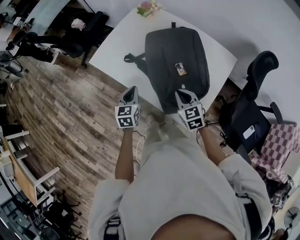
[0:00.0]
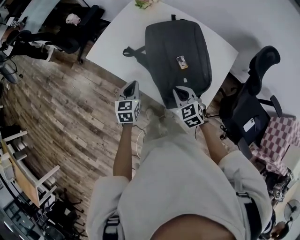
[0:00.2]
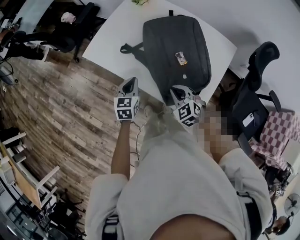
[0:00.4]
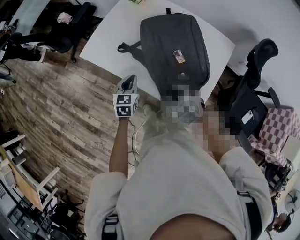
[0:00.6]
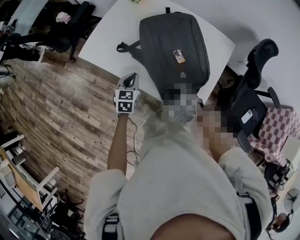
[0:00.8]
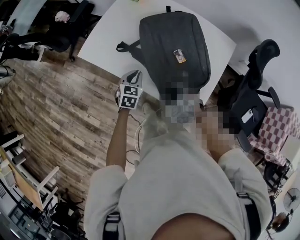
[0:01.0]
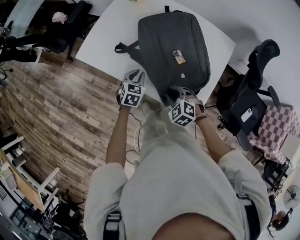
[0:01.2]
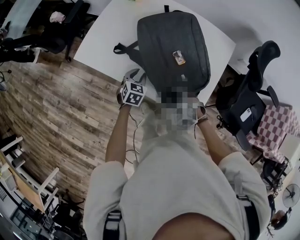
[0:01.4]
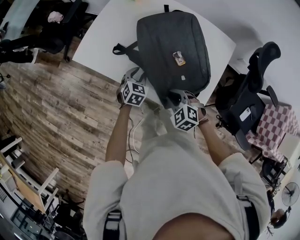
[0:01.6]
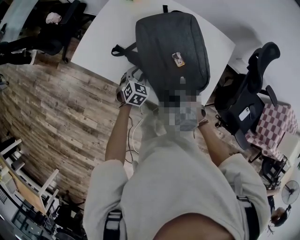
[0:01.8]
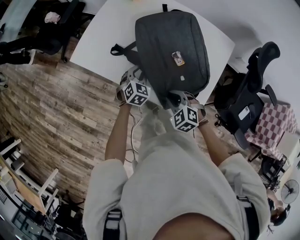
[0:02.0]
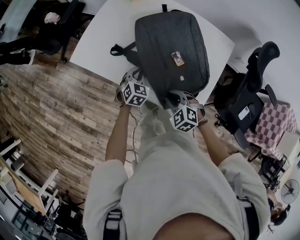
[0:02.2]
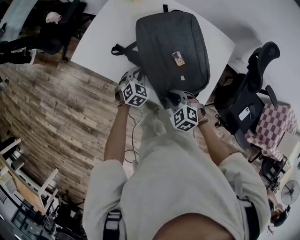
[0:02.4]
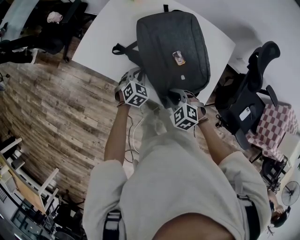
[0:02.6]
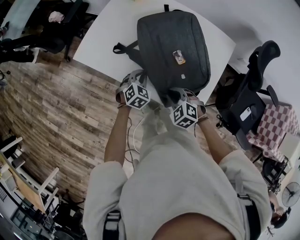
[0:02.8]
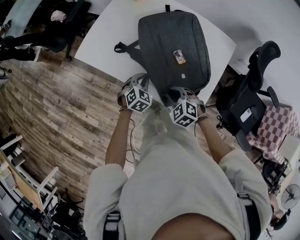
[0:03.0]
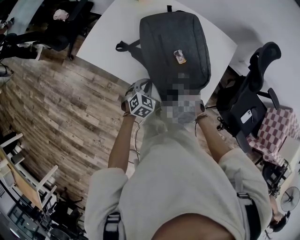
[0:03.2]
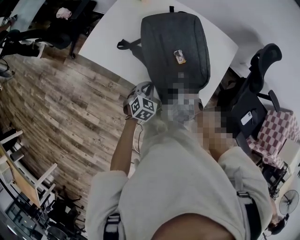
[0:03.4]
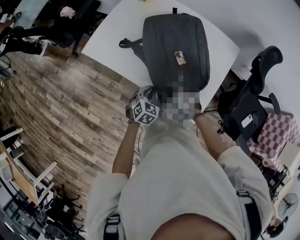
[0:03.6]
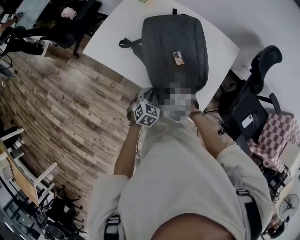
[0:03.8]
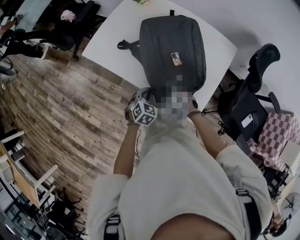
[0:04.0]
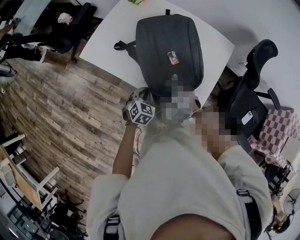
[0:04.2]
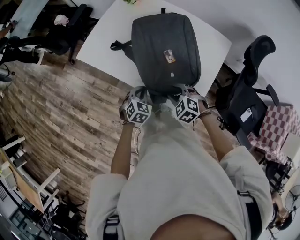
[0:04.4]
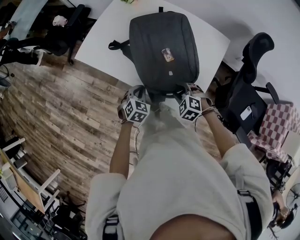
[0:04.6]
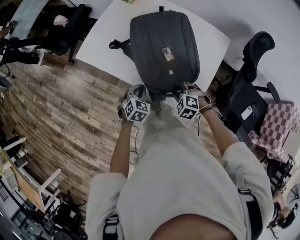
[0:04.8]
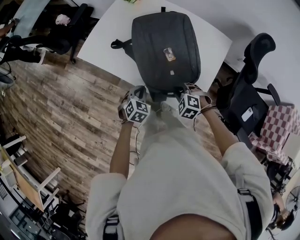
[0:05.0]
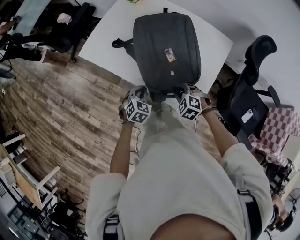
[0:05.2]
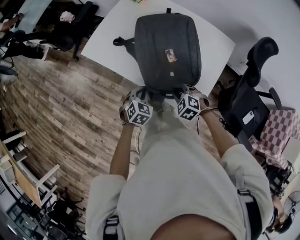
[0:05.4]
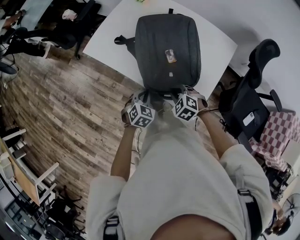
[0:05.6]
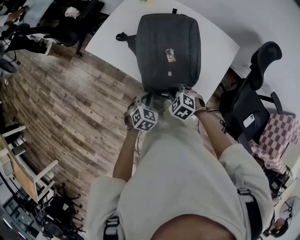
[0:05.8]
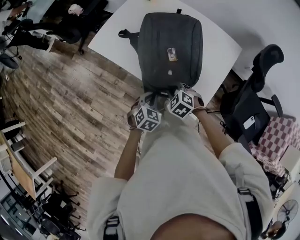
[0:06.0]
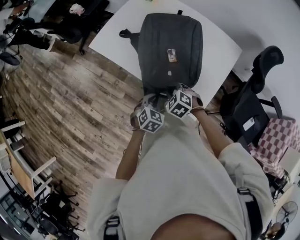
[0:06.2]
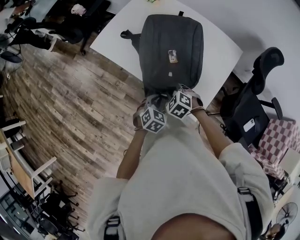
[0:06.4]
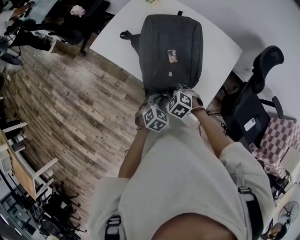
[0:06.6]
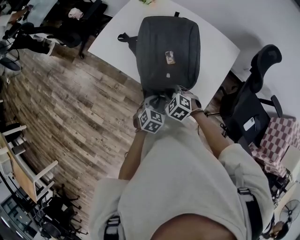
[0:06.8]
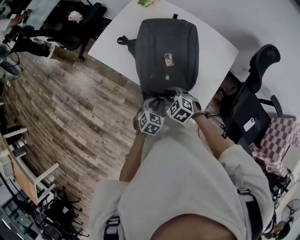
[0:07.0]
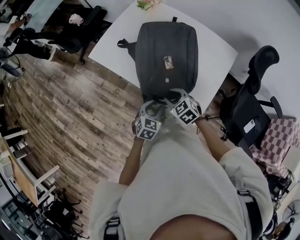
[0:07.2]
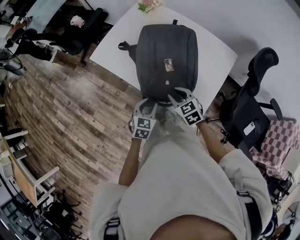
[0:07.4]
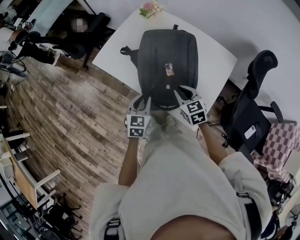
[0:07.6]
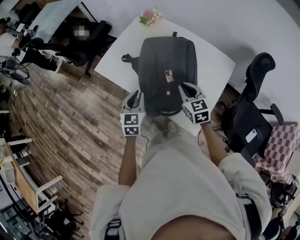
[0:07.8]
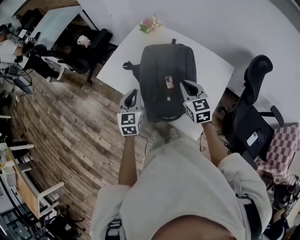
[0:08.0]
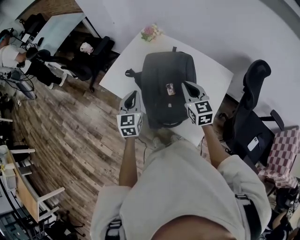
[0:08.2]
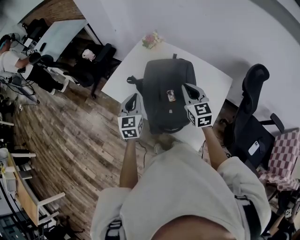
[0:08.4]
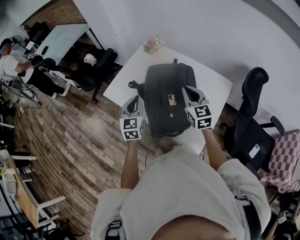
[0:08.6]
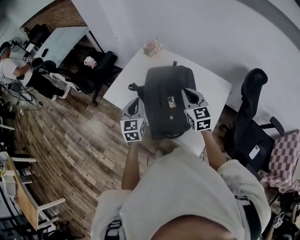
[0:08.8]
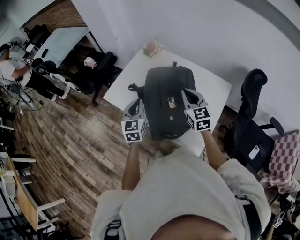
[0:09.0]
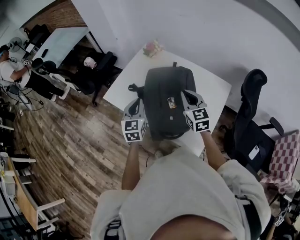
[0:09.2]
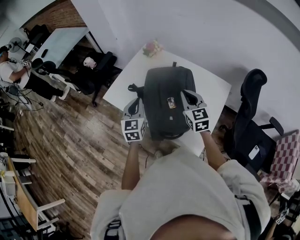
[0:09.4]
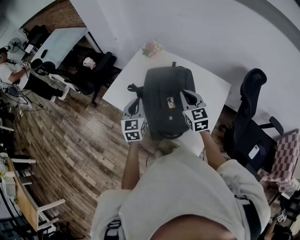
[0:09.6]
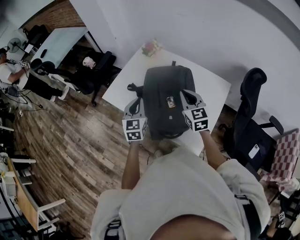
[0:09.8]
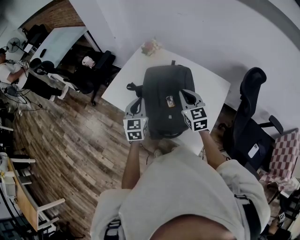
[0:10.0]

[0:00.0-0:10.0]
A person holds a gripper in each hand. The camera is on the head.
0:00.0 to 0:01.4: The left gripper is displaced downward and to the right by approximately 10 cm, changes its angle by approximately 30 degrees, and opens; the right gripper heads downward, covering some 5 cm, swivels approximately 30 degrees, and opens, then closes again.
0:01.4 to 0:02.8: The left gripper closes its fingers.
0:02.8 to 0:04.2: The left gripper shifts roughly 10 cm backward. Meanwhile the right gripper opens its fingers.
0:04.2 to 0:05.8: The left gripper travels backward by some 5 cm; the right gripper moves about 10 cm to the right and comes back, and closes up.
0:05.8 to 0:07.2: The left gripper opens up. The right gripper opens its fingers.
0:07.2 to 0:08.6: The right gripper travels upward, forward and to the right by approximately 25 cm, angles its fingers upward, by some 30 degrees, and closes, while the left gripper moves upward, forward and to the left, approximately 30 cm, angles its fingers upward, by approximately 30 degrees, and closes its fingers.
0:08.6 to 0:10.0: The grippers stay close to where they were, moving slightly.

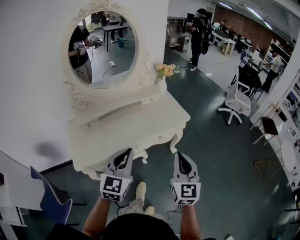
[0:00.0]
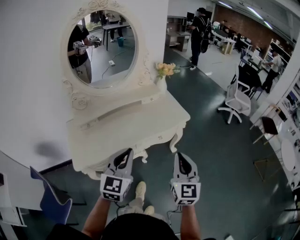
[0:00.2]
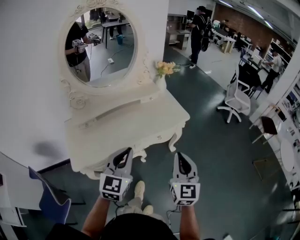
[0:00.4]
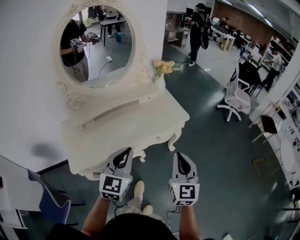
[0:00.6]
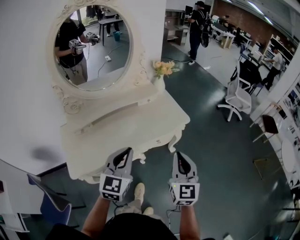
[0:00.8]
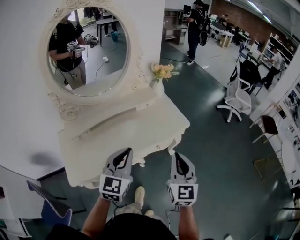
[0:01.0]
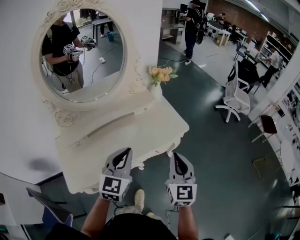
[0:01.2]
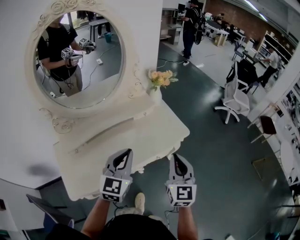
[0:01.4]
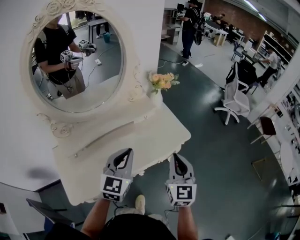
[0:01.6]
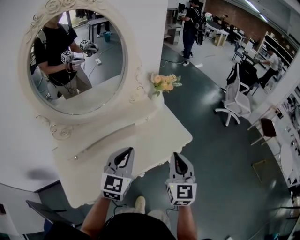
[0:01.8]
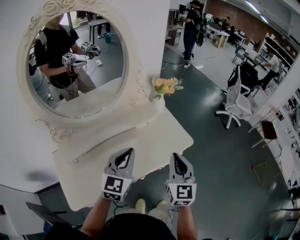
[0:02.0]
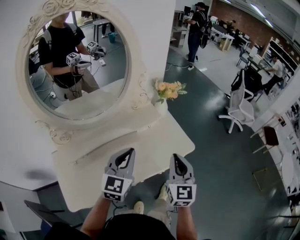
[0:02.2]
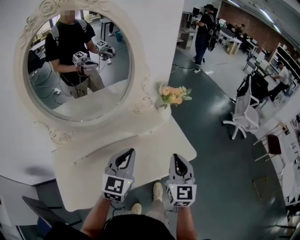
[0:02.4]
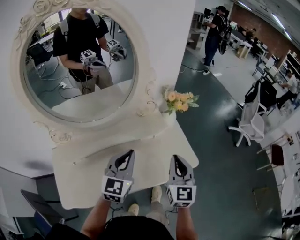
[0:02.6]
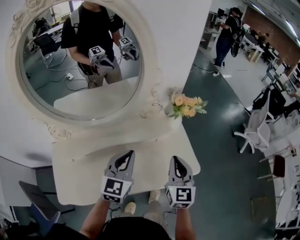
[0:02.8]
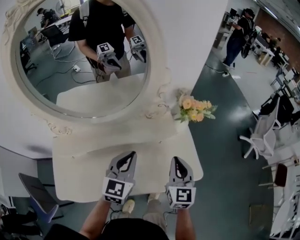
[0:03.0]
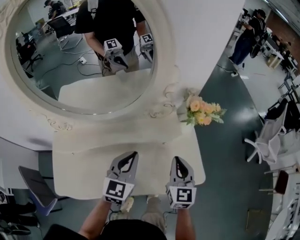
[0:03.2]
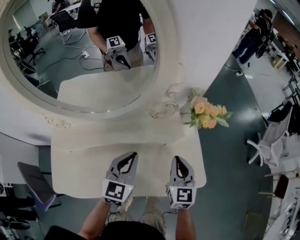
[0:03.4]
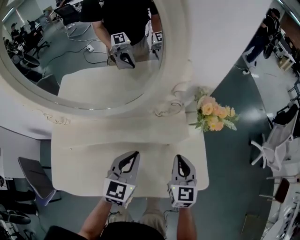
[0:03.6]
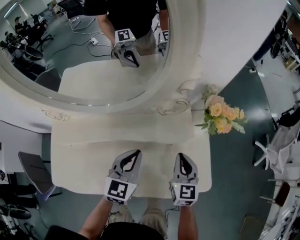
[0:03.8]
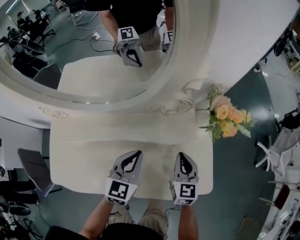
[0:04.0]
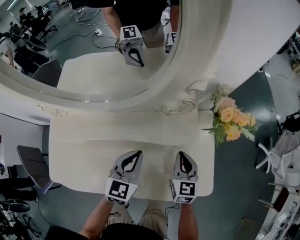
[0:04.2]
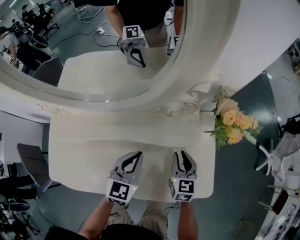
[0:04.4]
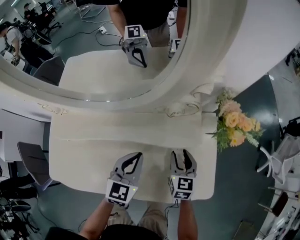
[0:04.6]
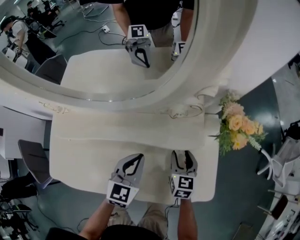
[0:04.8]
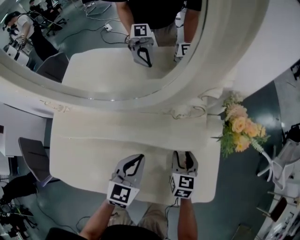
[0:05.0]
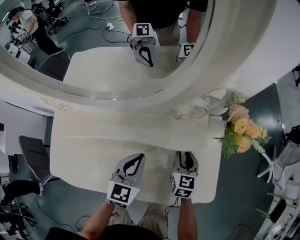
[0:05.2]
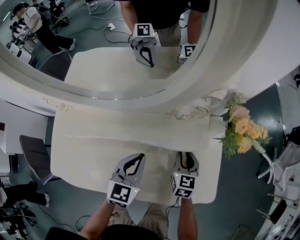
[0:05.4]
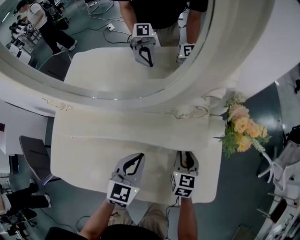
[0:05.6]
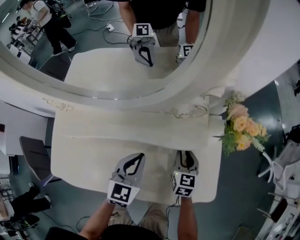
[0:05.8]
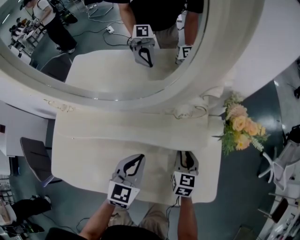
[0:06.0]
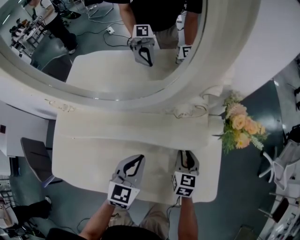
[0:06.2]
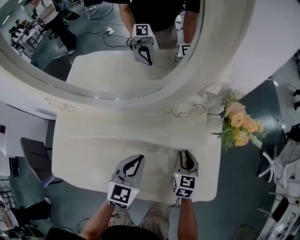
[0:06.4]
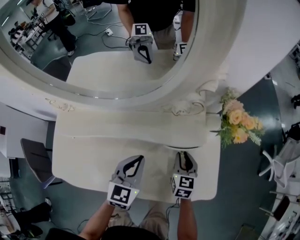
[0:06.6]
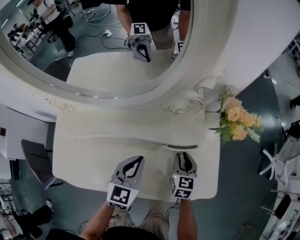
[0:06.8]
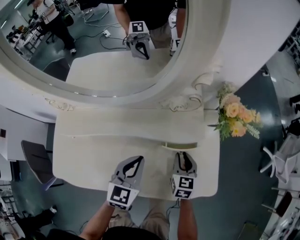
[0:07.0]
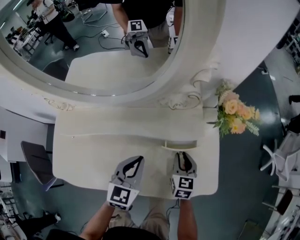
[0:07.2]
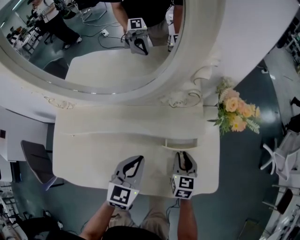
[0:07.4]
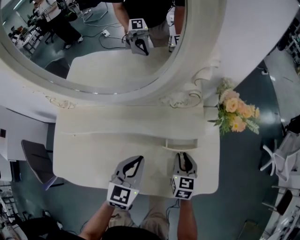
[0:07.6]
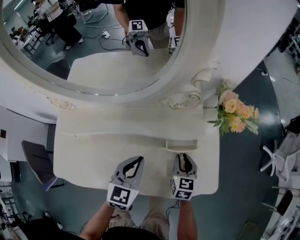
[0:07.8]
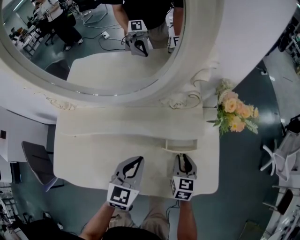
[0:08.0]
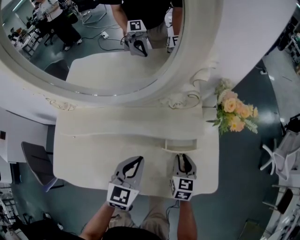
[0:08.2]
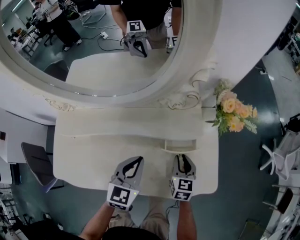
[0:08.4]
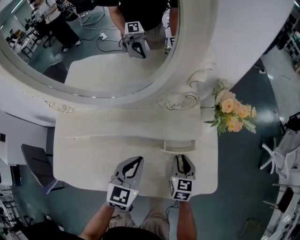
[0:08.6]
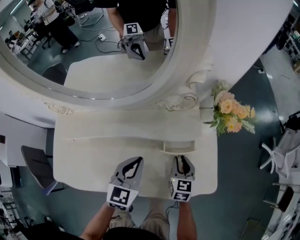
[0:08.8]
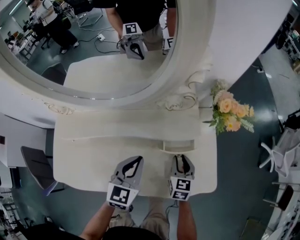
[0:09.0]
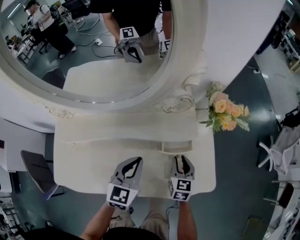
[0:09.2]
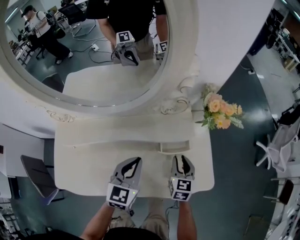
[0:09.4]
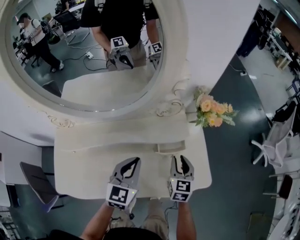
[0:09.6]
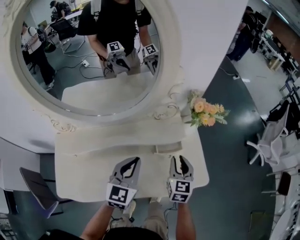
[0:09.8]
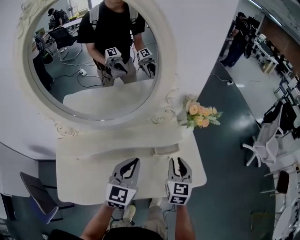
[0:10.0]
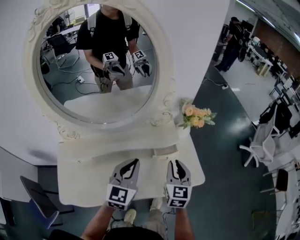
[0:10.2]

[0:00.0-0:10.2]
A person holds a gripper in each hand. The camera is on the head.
0:00.0 to 0:01.4: The grippers both shift forward by about 20 cm.
0:01.4 to 0:03.0: Both grippers move forward, about 25 cm.
0:03.0 to 0:04.4: The right gripper is displaced downward and forward by roughly 20 cm, and opens up, while the left gripper is displaced downward by approximately 15 cm.
0:04.4 to 0:05.8: The right gripper opens, then closes again.
0:05.8 to 0:07.2: The right gripper is displaced backward by about 5 cm.
0:07.2 to 0:08.8: The grippers stay close to where they were, moving slightly.
0:08.8 to 0:10.2: Both grippers move upward, approximately 20 cm. The right gripper rotates about 20 degrees.

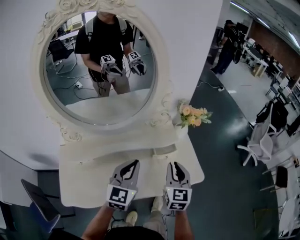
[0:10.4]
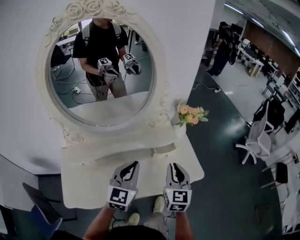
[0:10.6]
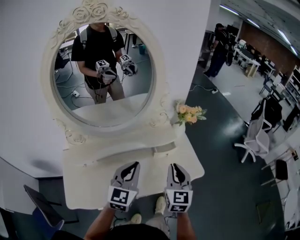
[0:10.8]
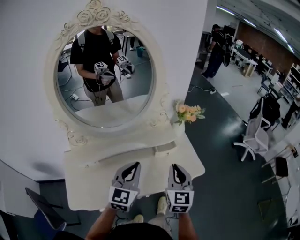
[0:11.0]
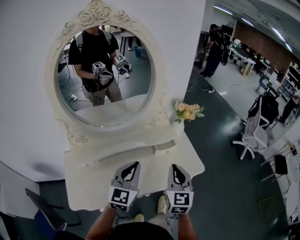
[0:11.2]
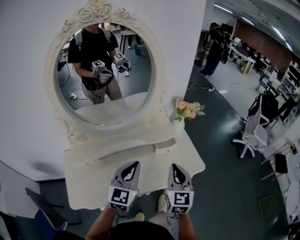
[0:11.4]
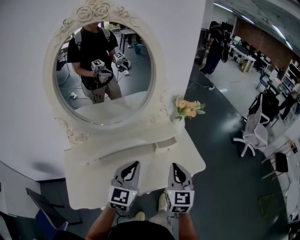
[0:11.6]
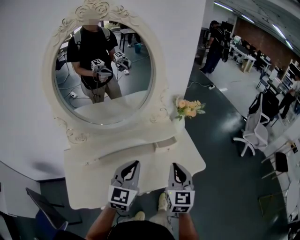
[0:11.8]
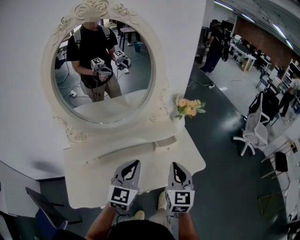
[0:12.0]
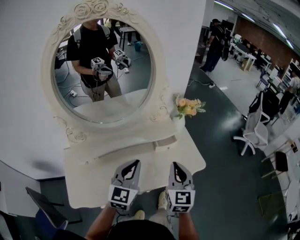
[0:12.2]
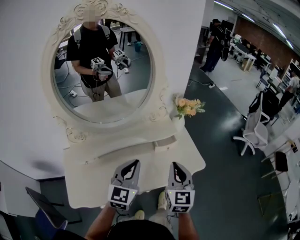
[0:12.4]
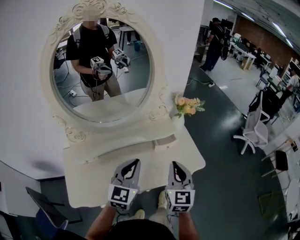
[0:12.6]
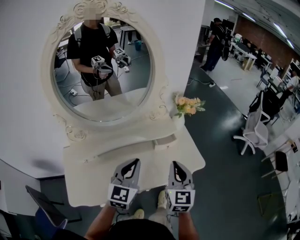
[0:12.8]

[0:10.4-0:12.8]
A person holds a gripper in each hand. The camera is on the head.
0:10.4 to 0:11.6: The right gripper shifts approximately 10 cm backward and upward. The left gripper shifts roughly 5 cm backward.
0:11.6 to 0:12.8: Neither gripper changes place.

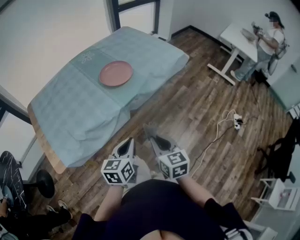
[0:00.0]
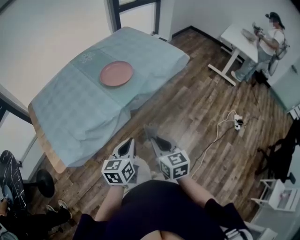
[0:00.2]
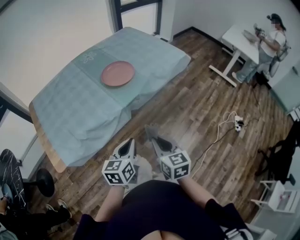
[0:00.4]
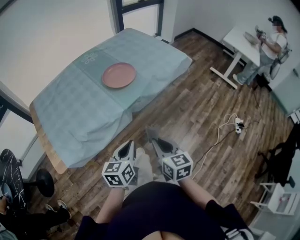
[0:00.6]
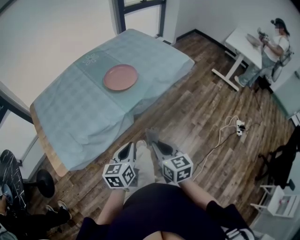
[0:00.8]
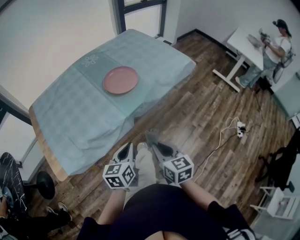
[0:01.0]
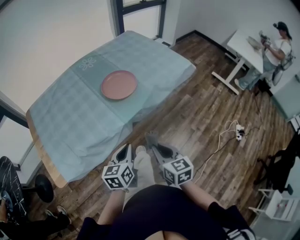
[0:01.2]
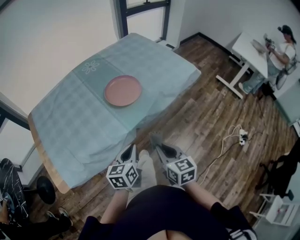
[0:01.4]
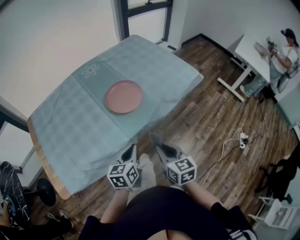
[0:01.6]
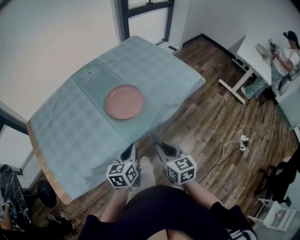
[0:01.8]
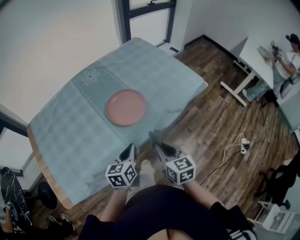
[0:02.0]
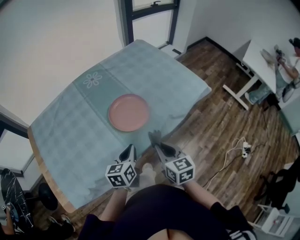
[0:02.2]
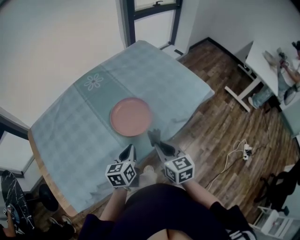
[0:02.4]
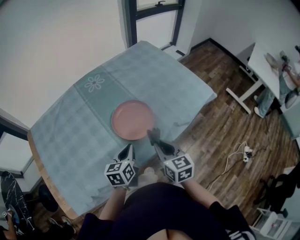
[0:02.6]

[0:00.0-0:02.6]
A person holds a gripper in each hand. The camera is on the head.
0:00.0 to 0:01.2: Both grippers travel together forward, roughly 10 cm.
0:01.2 to 0:02.6: The two grippers go roughly 30 cm forward.
